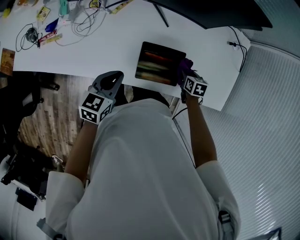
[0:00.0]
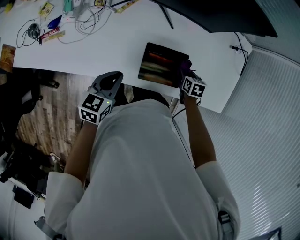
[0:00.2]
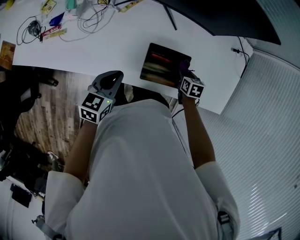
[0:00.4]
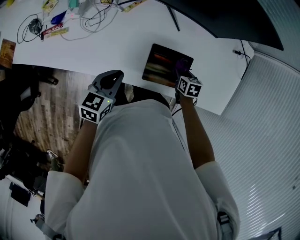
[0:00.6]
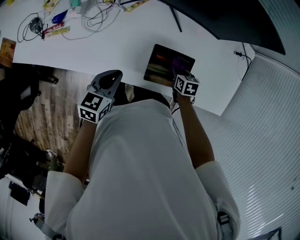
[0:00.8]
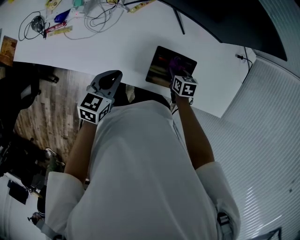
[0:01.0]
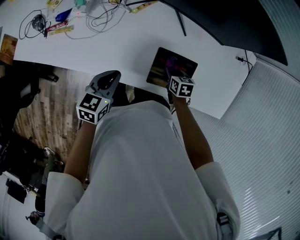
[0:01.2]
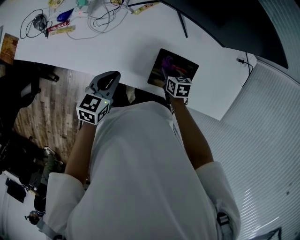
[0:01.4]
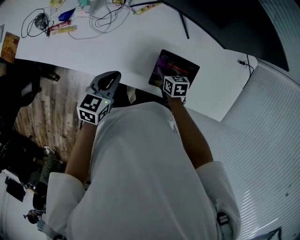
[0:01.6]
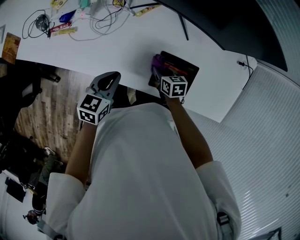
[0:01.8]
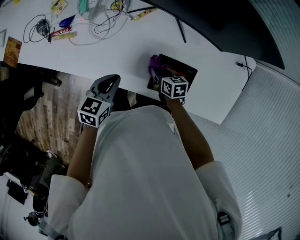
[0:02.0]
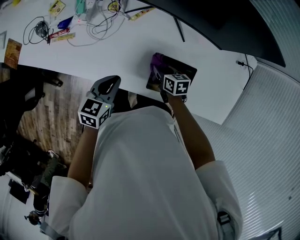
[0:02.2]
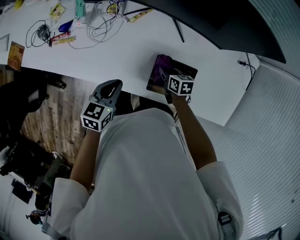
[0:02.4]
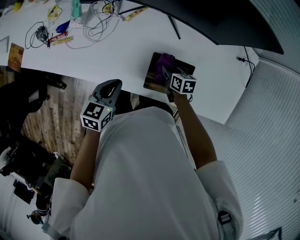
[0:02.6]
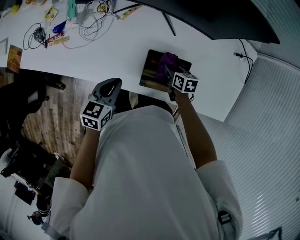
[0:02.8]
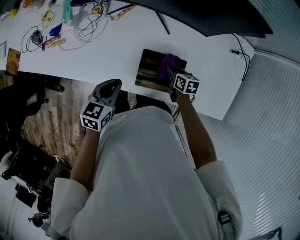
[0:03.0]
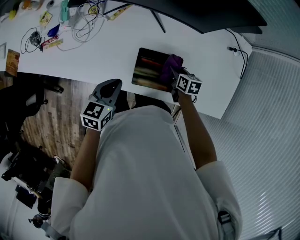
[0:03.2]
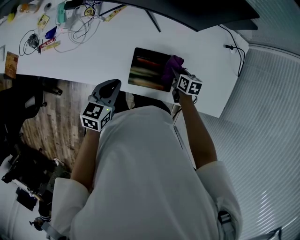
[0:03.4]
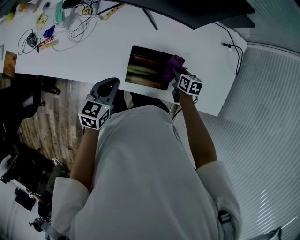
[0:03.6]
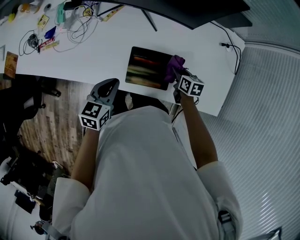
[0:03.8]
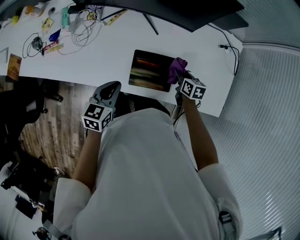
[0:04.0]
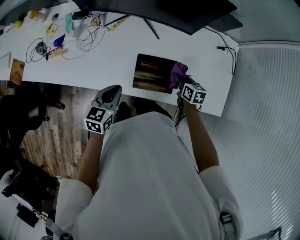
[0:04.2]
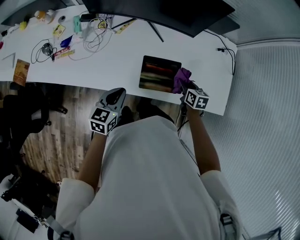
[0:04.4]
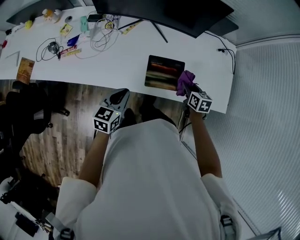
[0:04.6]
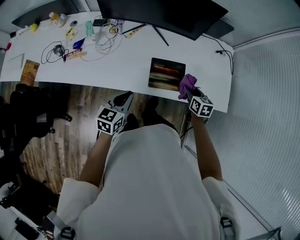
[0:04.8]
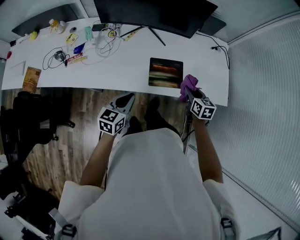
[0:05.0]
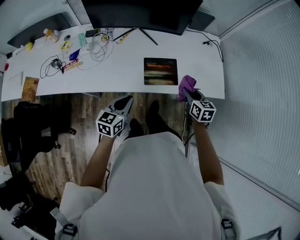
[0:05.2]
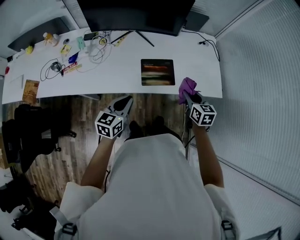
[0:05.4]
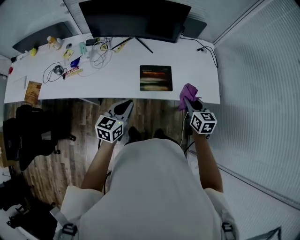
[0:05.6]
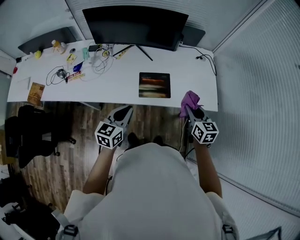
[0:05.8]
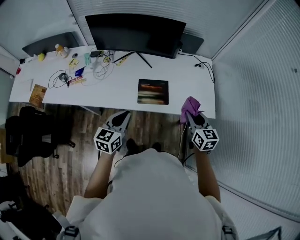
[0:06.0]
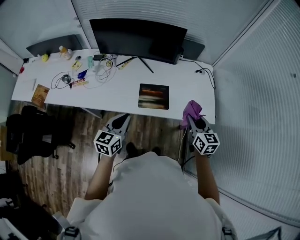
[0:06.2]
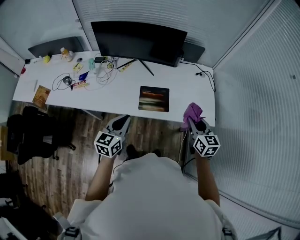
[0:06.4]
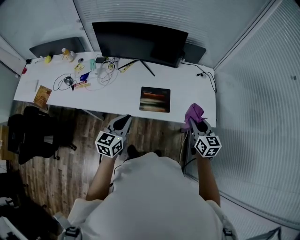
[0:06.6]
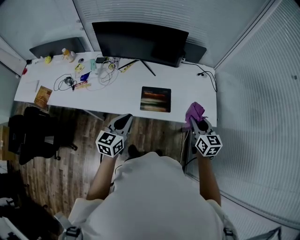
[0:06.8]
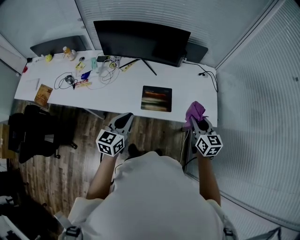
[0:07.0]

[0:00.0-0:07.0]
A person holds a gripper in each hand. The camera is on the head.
0:00.0 to 0:01.4: The left gripper is displaced to the left by approximately 10 cm. The right gripper travels to the left by some 20 cm.
0:01.4 to 0:02.8: Both grippers move to the right, about 5 cm.
0:02.8 to 0:04.2: The left gripper changes place by about 5 cm. The right gripper is displaced to the right and upward by roughly 15 cm.
0:04.2 to 0:05.6: The left gripper moves backward and upward, approximately 20 cm, while the right gripper travels backward and upward by about 30 cm, and changes its angle by approximately 20 degrees.
0:05.6 to 0:07.0: The two grippers go roughly 10 cm upward.

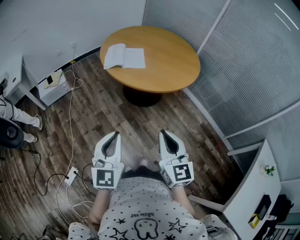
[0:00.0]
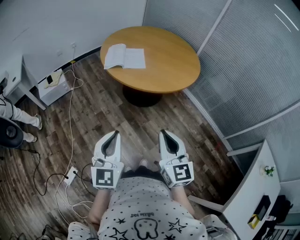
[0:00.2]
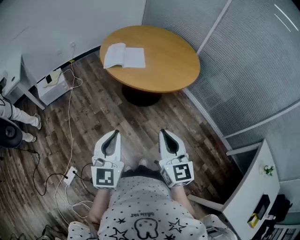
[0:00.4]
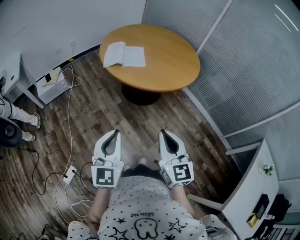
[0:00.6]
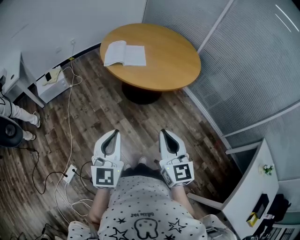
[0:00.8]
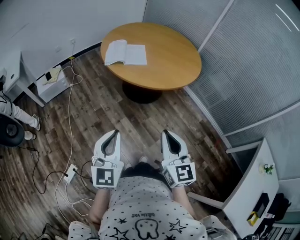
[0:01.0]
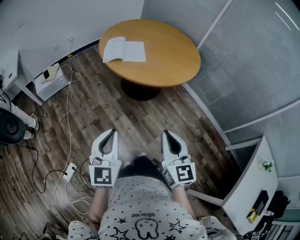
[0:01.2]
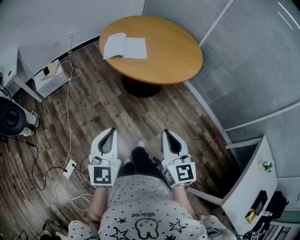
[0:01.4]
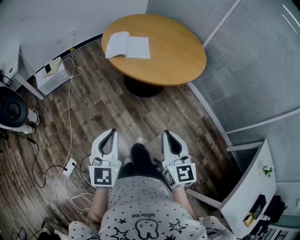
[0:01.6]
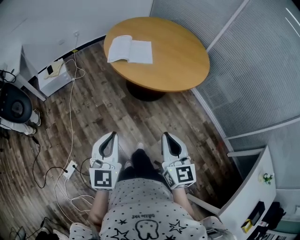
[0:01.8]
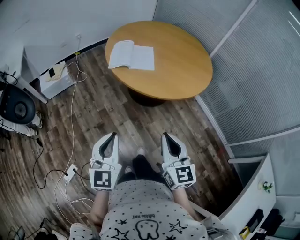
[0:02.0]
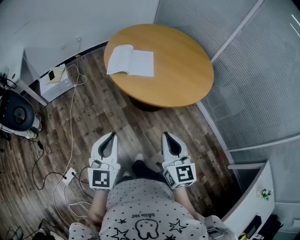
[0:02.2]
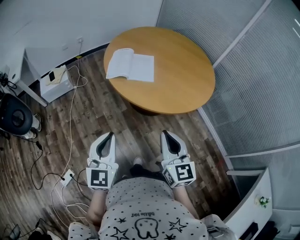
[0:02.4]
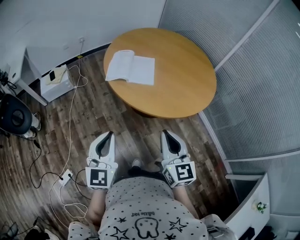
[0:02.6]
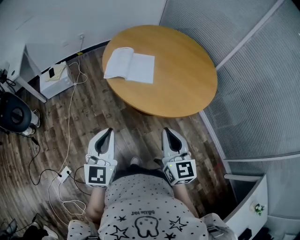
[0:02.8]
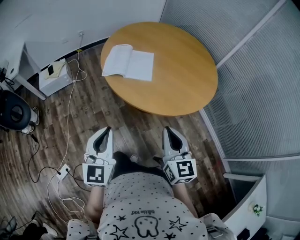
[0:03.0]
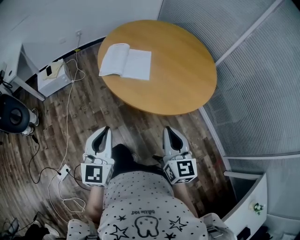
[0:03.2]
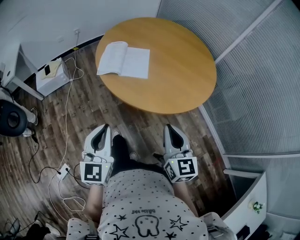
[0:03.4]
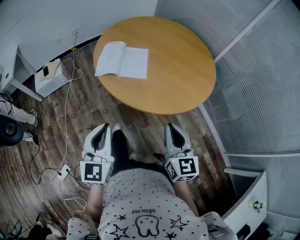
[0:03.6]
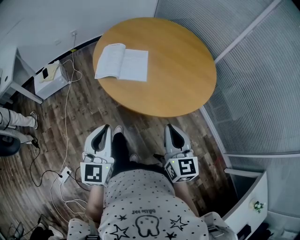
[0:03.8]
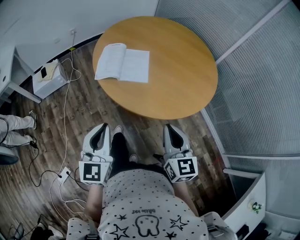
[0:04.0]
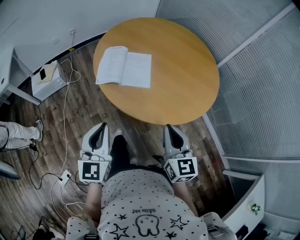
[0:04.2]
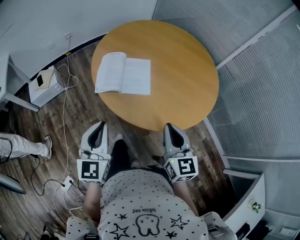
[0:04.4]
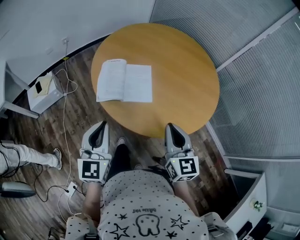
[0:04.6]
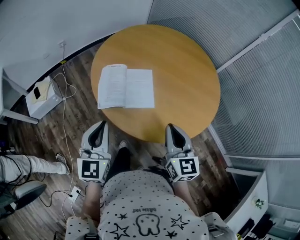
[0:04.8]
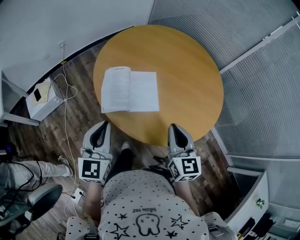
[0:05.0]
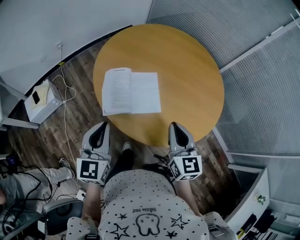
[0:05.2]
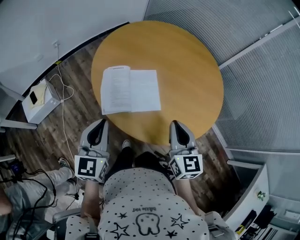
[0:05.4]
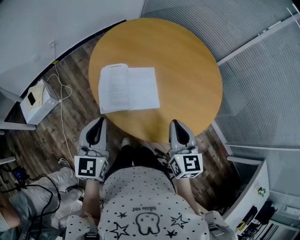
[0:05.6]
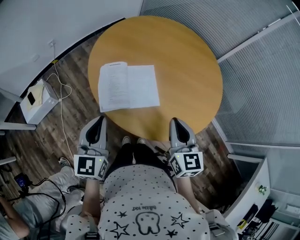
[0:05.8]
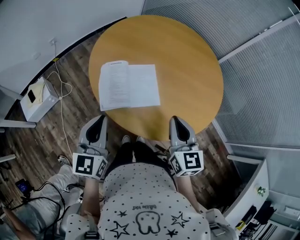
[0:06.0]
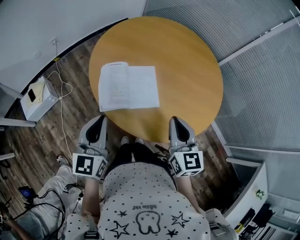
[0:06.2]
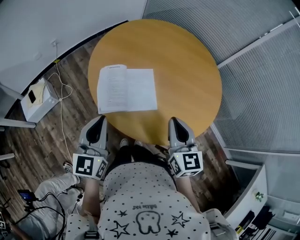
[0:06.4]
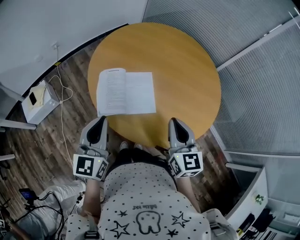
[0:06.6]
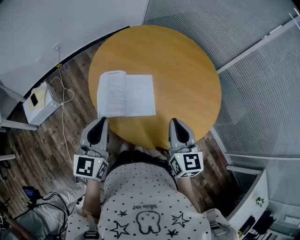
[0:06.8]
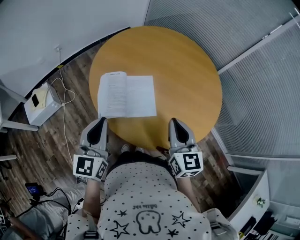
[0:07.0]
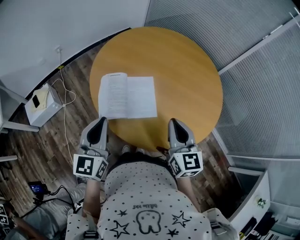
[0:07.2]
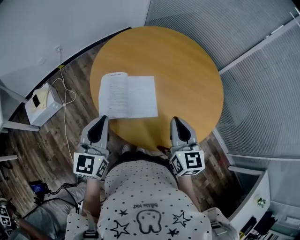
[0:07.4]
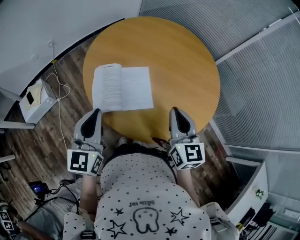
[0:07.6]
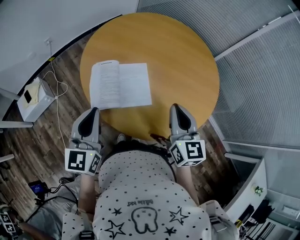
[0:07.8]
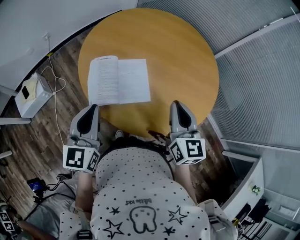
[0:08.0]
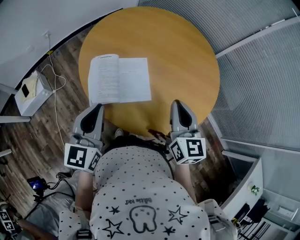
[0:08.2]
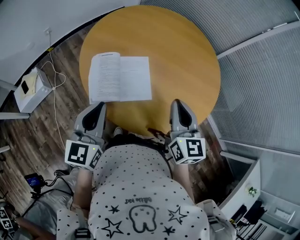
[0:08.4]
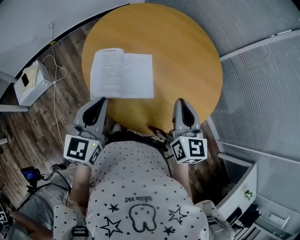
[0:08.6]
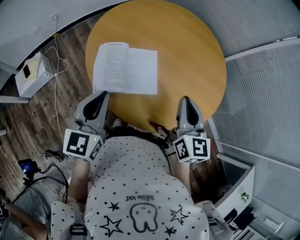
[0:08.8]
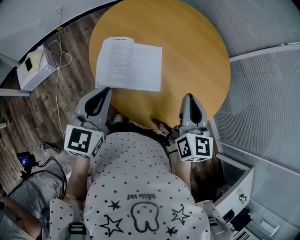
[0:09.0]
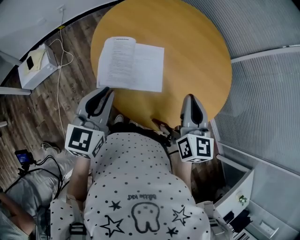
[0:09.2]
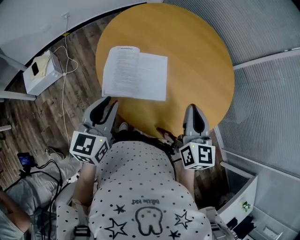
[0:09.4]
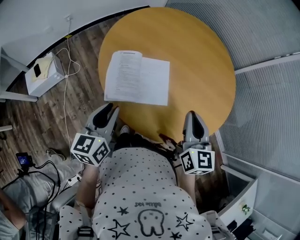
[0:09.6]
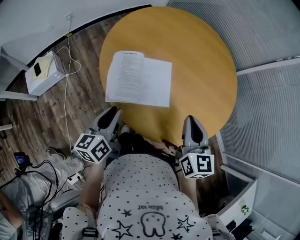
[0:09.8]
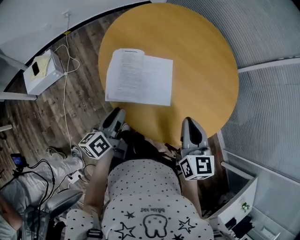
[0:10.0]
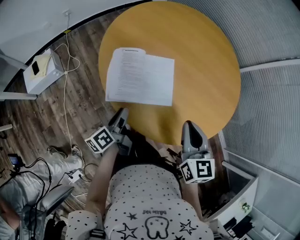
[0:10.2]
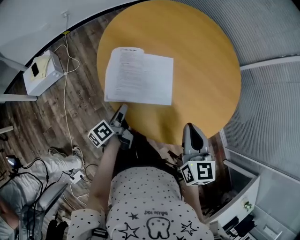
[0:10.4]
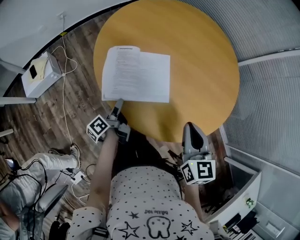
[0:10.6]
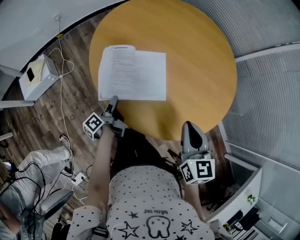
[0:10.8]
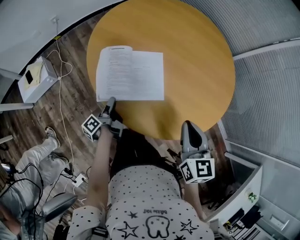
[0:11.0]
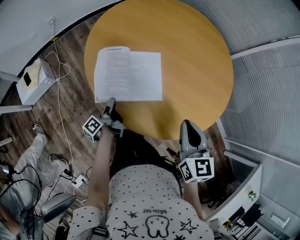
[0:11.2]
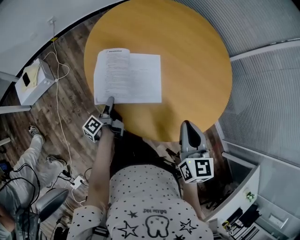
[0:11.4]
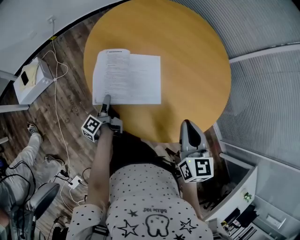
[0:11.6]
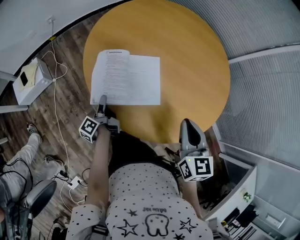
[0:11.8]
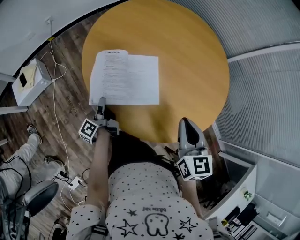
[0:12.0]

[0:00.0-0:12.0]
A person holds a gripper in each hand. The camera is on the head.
0:00.0 to 0:01.6: The left gripper shifts by roughly 5 cm.
0:01.6 to 0:03.0: The two grippers go roughly 20 cm forward.
0:03.0 to 0:04.4: The grippers both shift forward by approximately 15 cm.
0:04.4 to 0:06.0: The two grippers go about 15 cm forward and to the left.
0:06.0 to 0:07.6: The right gripper moves about 5 cm.
0:07.6 to 0:09.0: There are only small adjustments of the grippers.
0:09.0 to 0:10.4: The left gripper moves downward, some 25 cm, rolls counterclockwise, seen from behind, by roughly 80 degrees, and opens its fingers. Meanwhile the right gripper goes approximately 5 cm downward.
0:10.4 to 0:12.0: The left gripper shifts some 5 cm to the left.

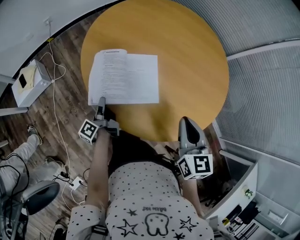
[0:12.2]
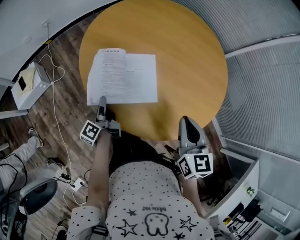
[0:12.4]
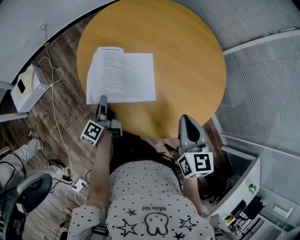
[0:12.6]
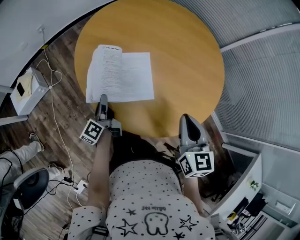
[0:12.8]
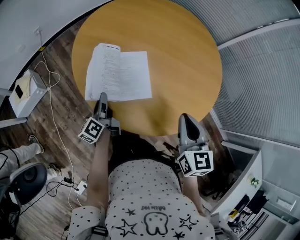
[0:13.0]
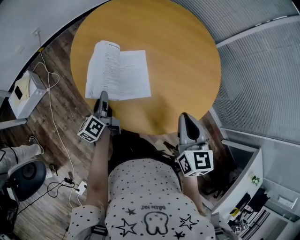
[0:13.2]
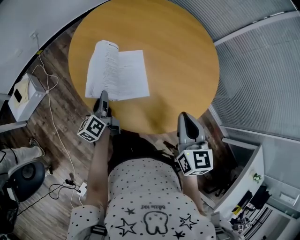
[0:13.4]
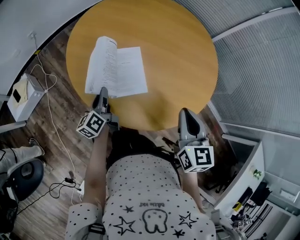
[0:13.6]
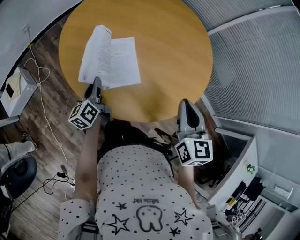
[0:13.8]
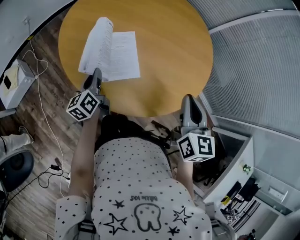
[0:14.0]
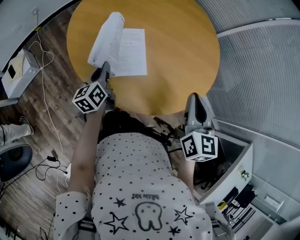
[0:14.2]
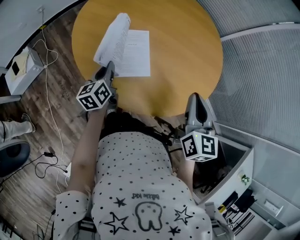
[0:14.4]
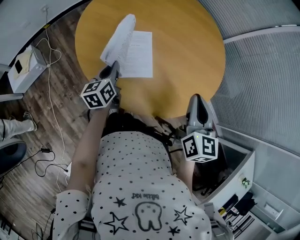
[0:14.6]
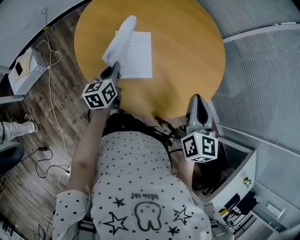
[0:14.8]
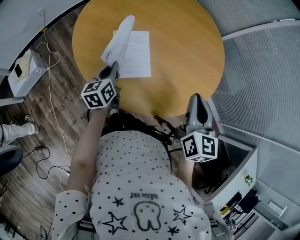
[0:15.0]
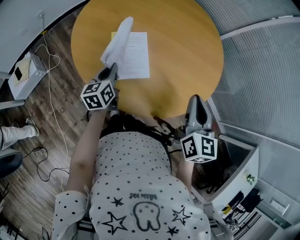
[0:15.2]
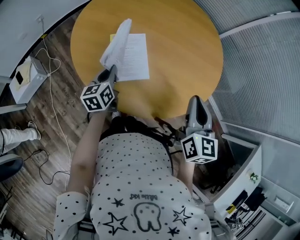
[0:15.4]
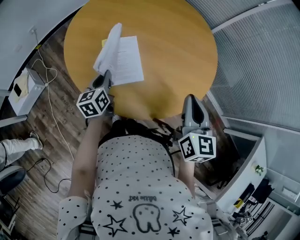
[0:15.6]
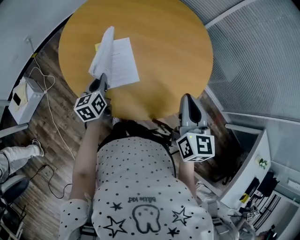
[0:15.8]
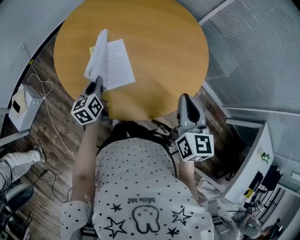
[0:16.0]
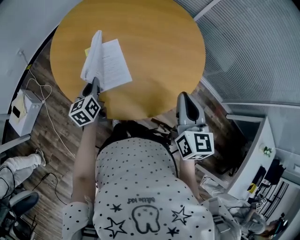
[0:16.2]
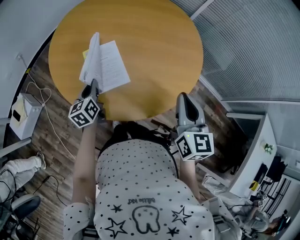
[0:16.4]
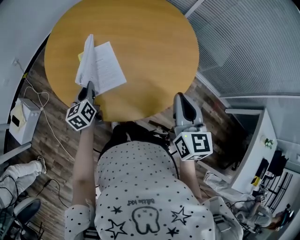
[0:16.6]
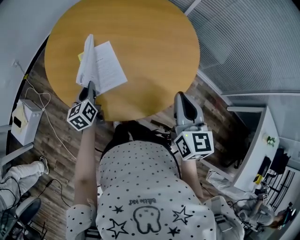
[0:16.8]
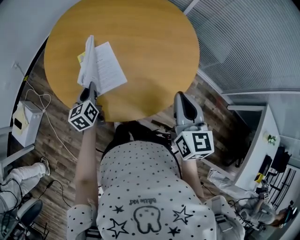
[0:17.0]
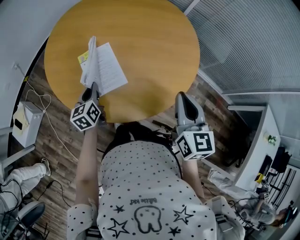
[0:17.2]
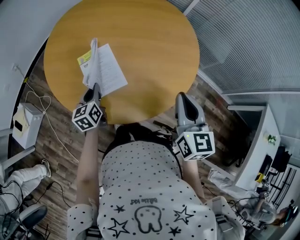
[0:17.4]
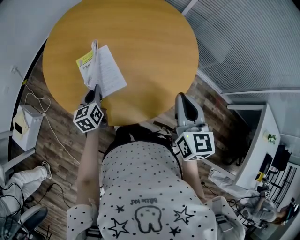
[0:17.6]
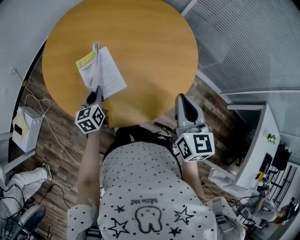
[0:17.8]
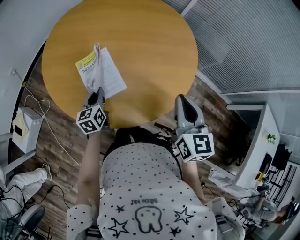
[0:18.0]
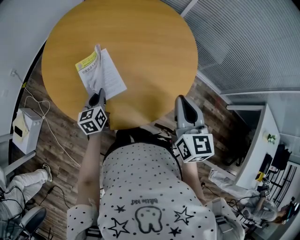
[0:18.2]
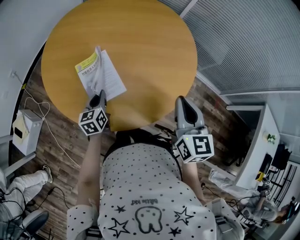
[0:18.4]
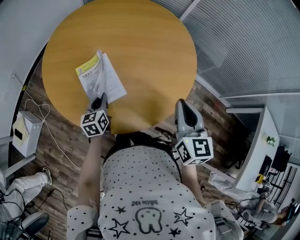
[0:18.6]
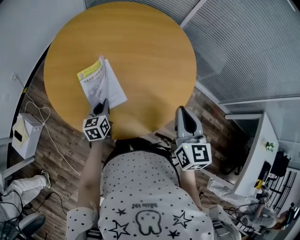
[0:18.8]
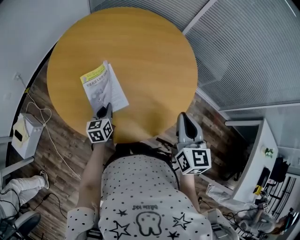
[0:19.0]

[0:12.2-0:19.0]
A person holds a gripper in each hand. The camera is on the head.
0:12.2 to 0:13.6: The right gripper shifts by about 5 cm. The left gripper travels upward and to the right by some 10 cm, and turns by some 40 degrees.
0:13.6 to 0:15.0: The left gripper changes its angle by about 20 degrees.
0:15.0 to 0:17.6: The grippers move only a little.
0:17.6 to 0:19.0: The left gripper moves roughly 5 cm.
